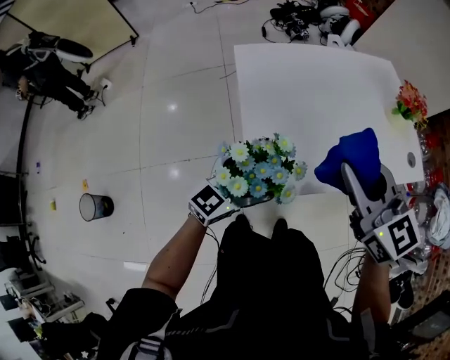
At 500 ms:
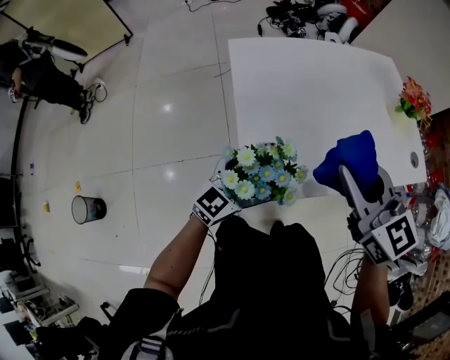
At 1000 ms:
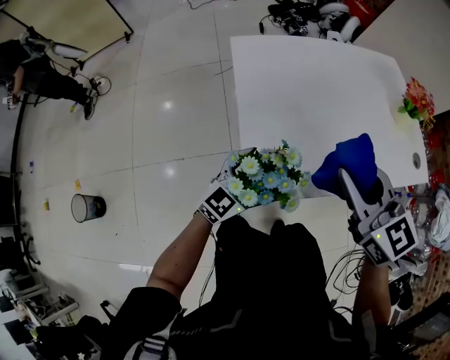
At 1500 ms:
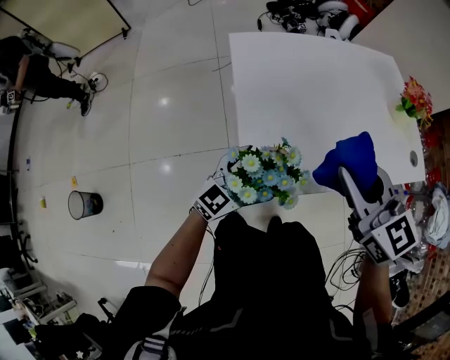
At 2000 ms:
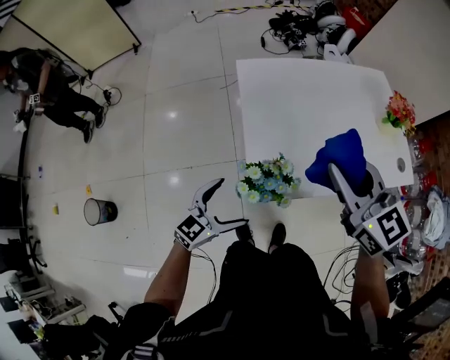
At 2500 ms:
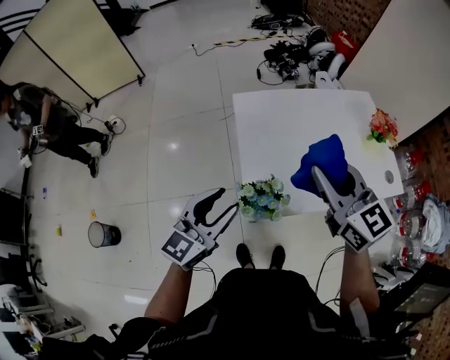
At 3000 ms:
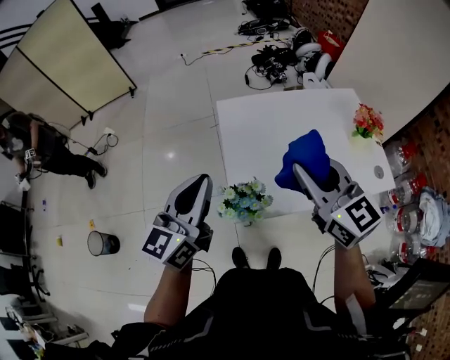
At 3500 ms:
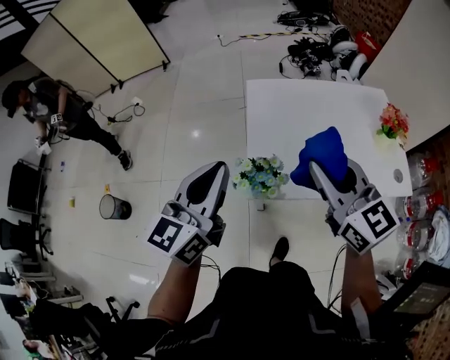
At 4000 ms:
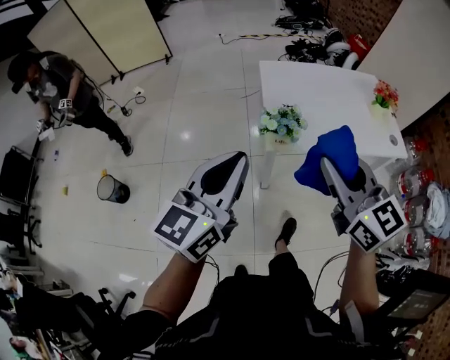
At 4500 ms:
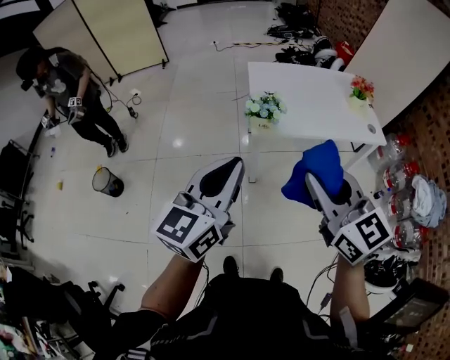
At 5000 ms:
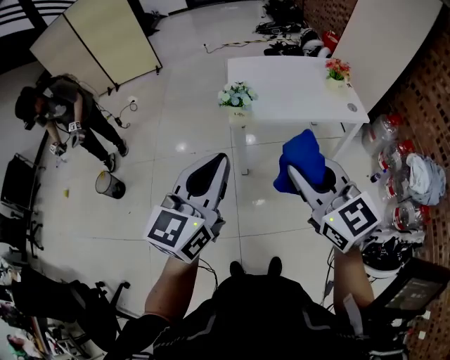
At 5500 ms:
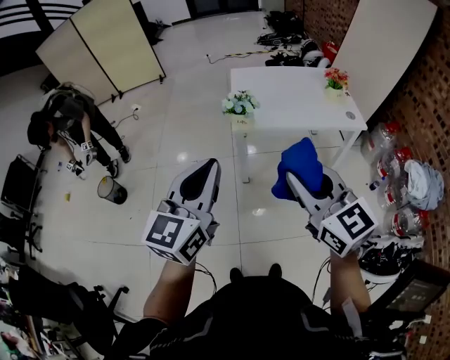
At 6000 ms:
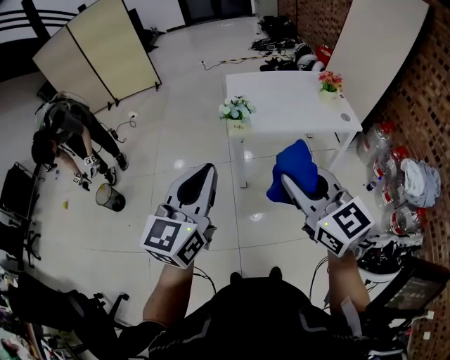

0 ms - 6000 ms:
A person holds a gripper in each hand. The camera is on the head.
0 ms - 2000 ms: The left gripper moves backward and to the left, about 10 cm.
2000 ms - 4000 ms: The right gripper moves backward, some 30 cm. Meanwhile the left gripper moves upward and backward, some 40 cm, swivels about 30 degrees, and closes its fingers.
4000 ms - 6000 ms: The two grippers go about 25 cm backward.

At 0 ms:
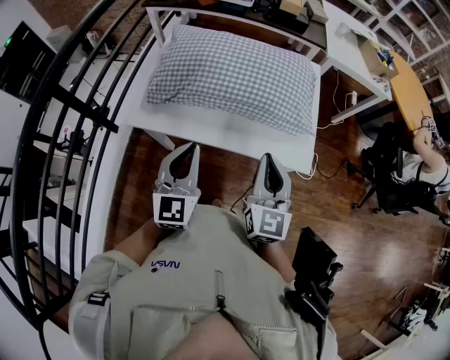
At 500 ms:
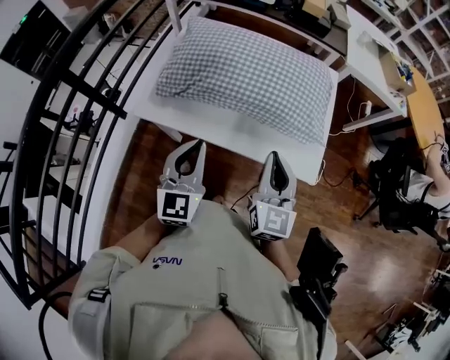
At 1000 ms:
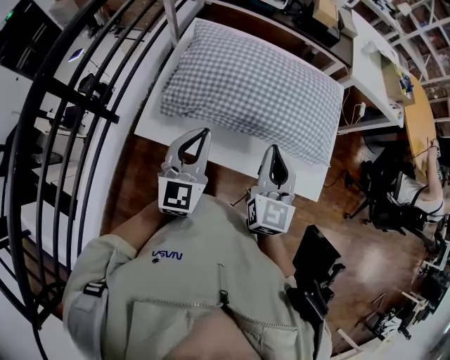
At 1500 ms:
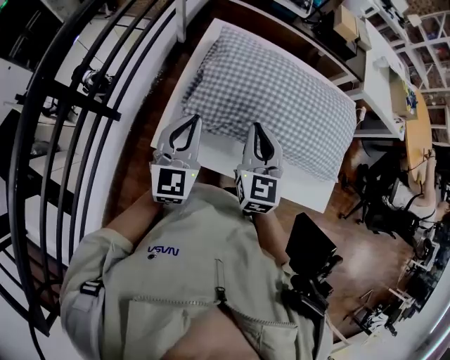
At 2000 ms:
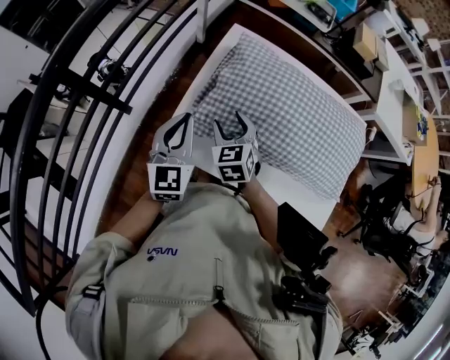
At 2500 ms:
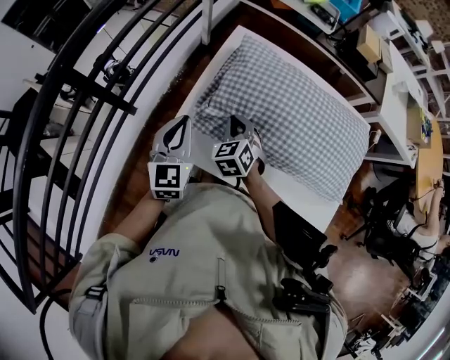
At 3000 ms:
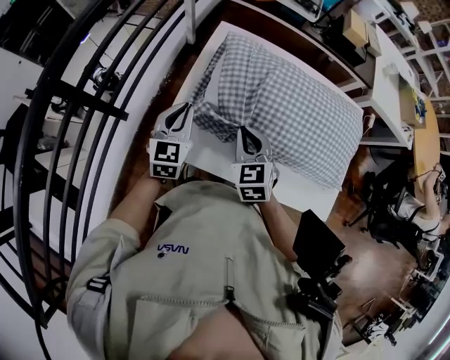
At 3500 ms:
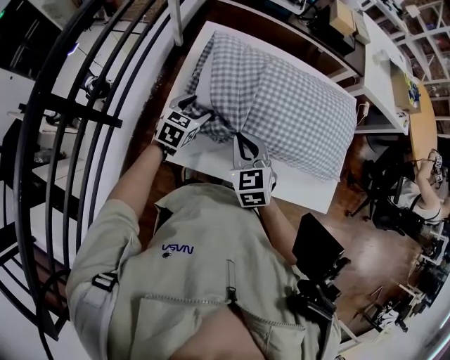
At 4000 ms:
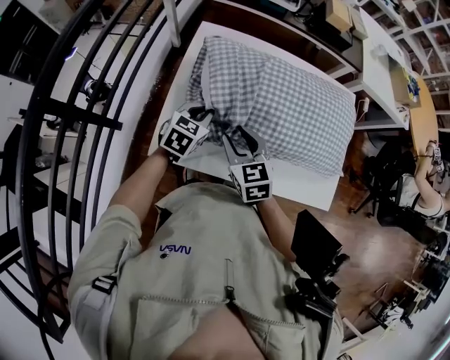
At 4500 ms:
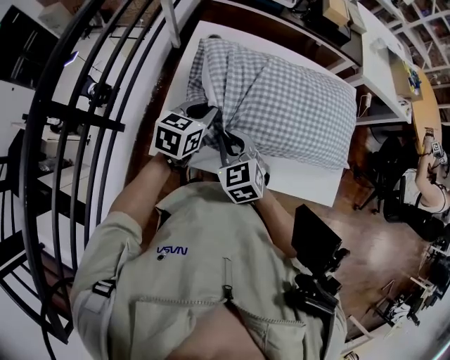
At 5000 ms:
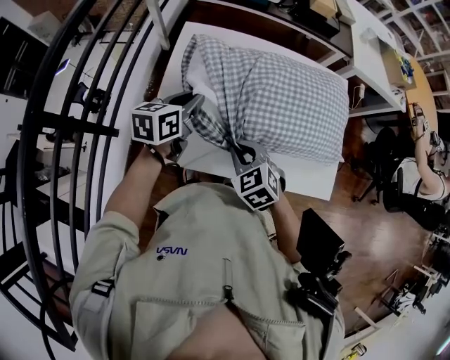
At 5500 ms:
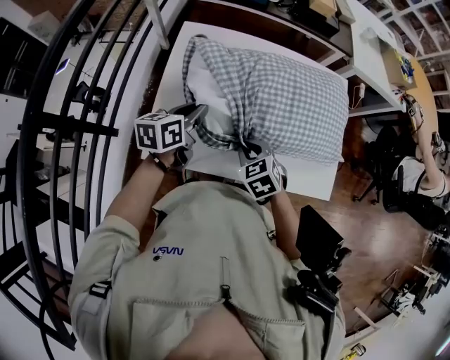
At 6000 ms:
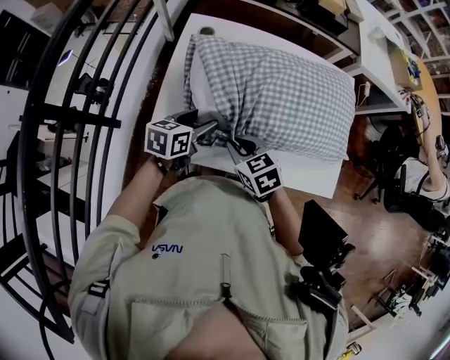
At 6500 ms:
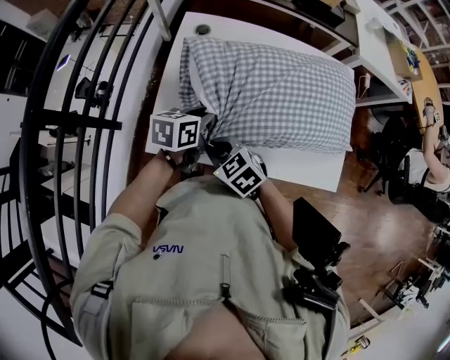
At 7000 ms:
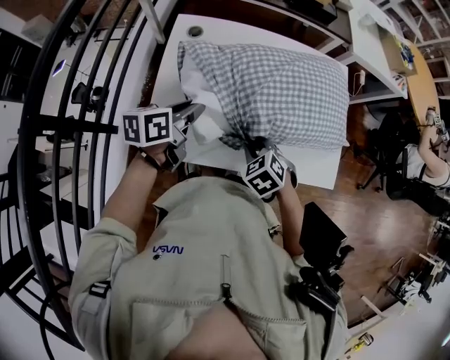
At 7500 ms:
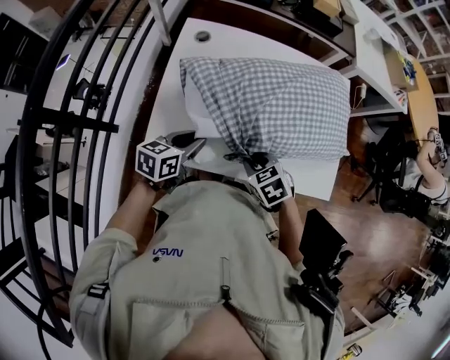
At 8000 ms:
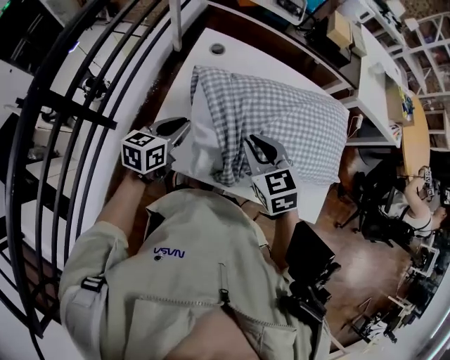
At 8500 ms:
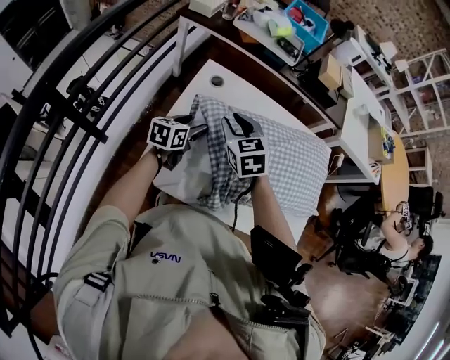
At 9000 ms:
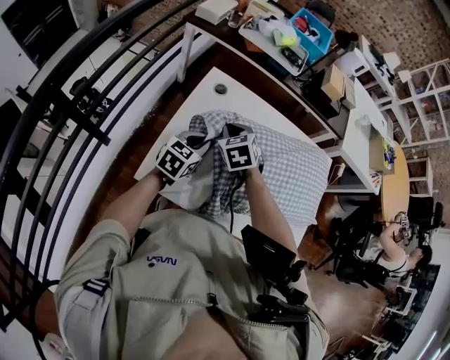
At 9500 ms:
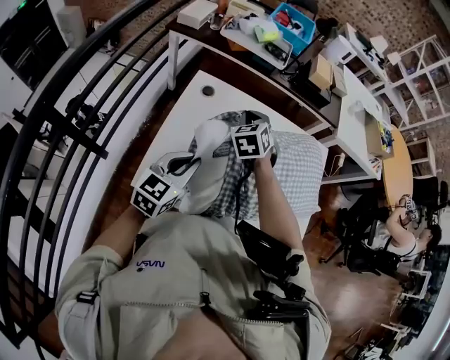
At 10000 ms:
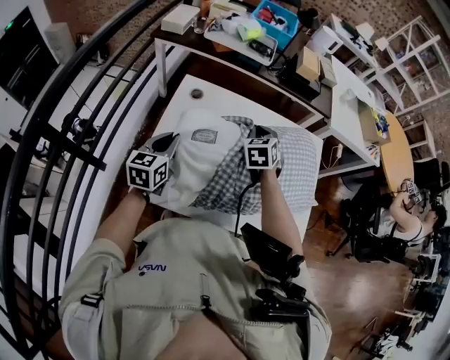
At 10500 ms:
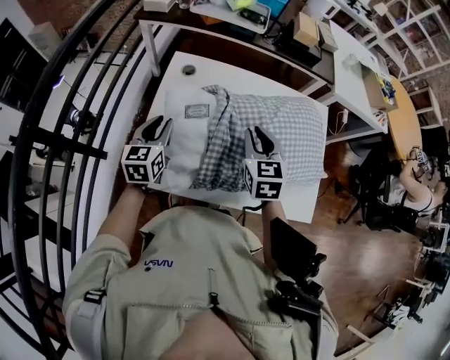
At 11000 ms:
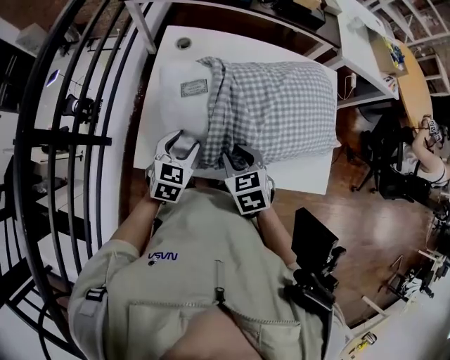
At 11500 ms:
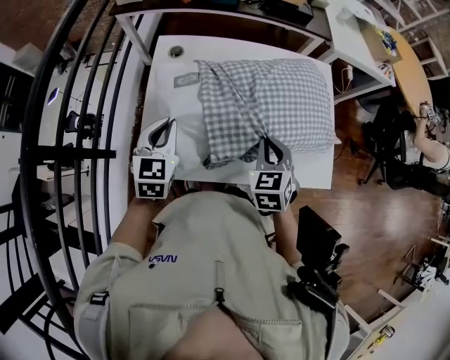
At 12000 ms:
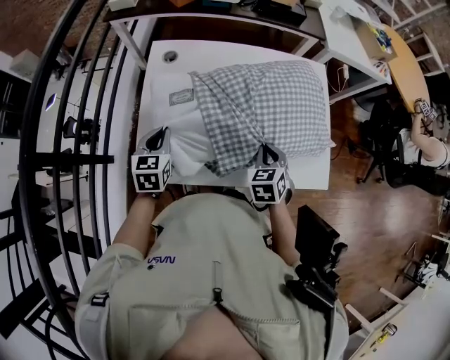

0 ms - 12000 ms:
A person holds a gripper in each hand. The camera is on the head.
0 ms - 2000 ms: The right gripper travels to the left, forward and downward by about 40 cm, tilts its fingers roughly 30 degrees downward, and opens up; the left gripper goes roughly 30 cm forward and to the left.
2000 ms - 4000 ms: The left gripper heads downward, to the right and forward, covering about 15 cm, turns by approximately 40 degrees, and opens and closes again, while the right gripper travels to the right by about 5 cm, and closes its fingers.
4000 ms - 6000 ms: The left gripper goes approximately 5 cm backward, goes upward and returns, roughly 10 cm each way, rotates about 30 degrees, and opens. The right gripper moves approximately 5 cm to the right and comes back, and closes its fingers.
6000 ms - 8000 ms: The right gripper swings left and right, approximately 15 cm each way, with 2 reversals. Meanwhile the left gripper moves to the left, some 5 cm, and closes up.
8000 ms - 10000 ms: The right gripper travels forward by about 20 cm, and swivels roughly 30 degrees, while the left gripper goes forward and backward, roughly 10 cm each way, reversing 2 times, and opens, then closes again.
10000 ms - 12000 ms: The right gripper heads backward and to the right, covering some 20 cm, and opens and closes again, while the left gripper travels downward by some 5 cm, goes to the right and returns, about 10 cm each way, and opens, then closes again.

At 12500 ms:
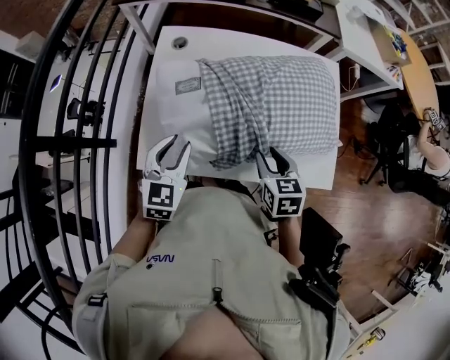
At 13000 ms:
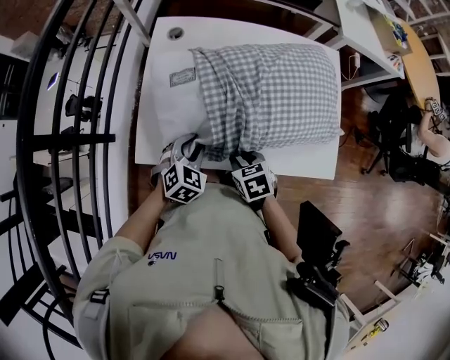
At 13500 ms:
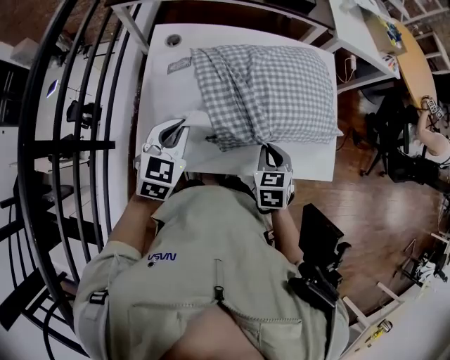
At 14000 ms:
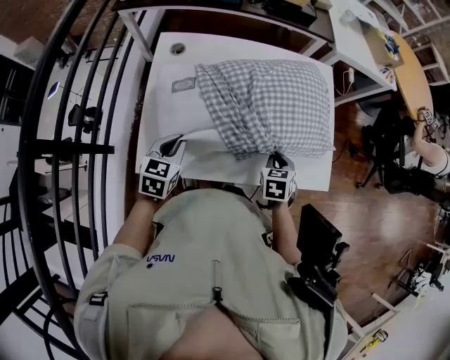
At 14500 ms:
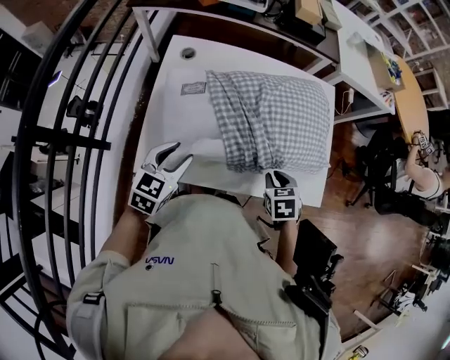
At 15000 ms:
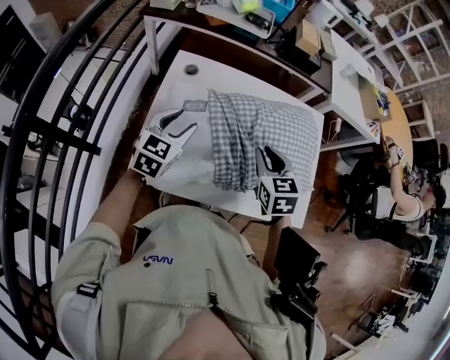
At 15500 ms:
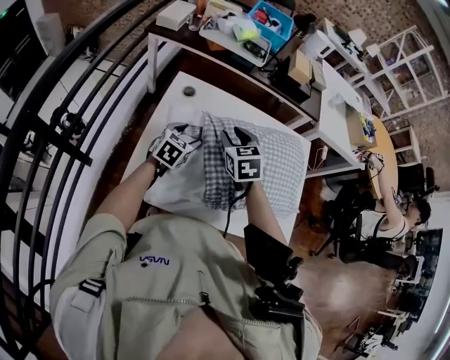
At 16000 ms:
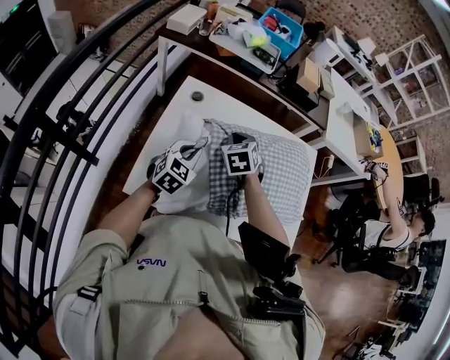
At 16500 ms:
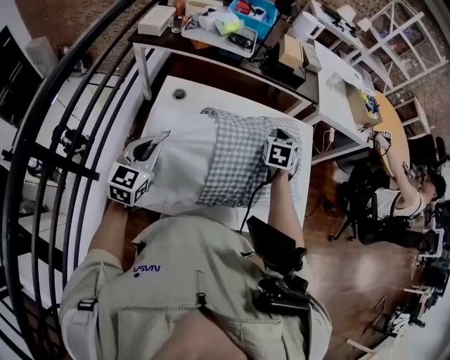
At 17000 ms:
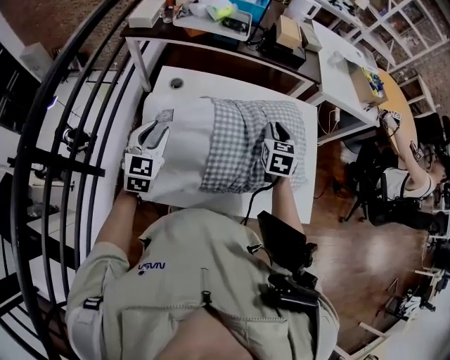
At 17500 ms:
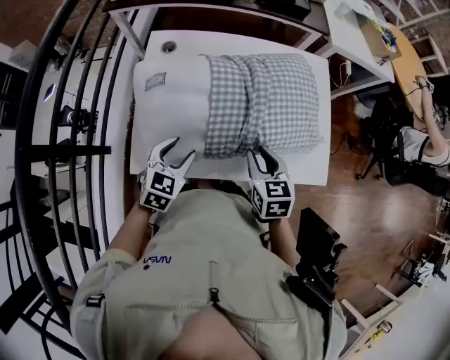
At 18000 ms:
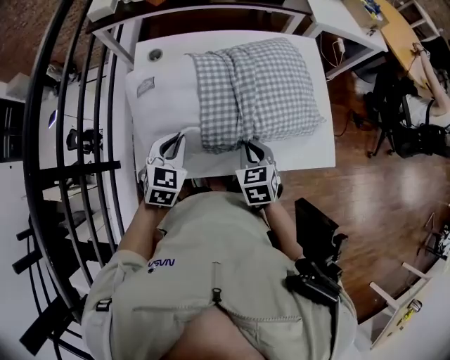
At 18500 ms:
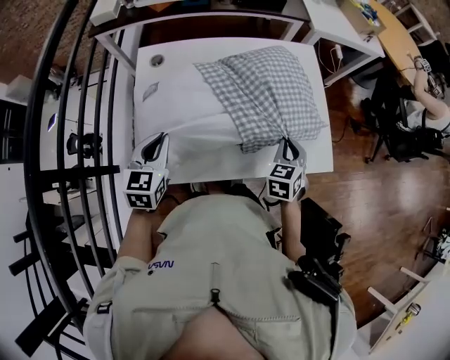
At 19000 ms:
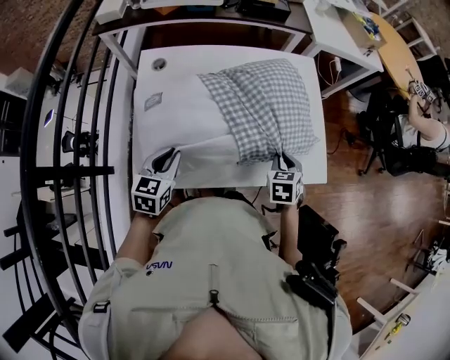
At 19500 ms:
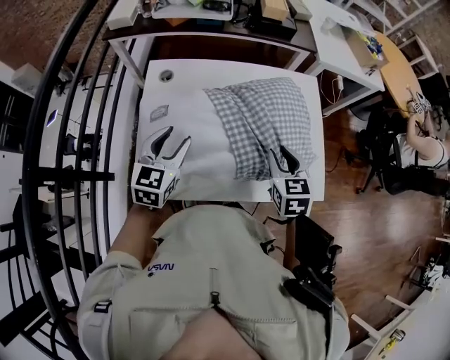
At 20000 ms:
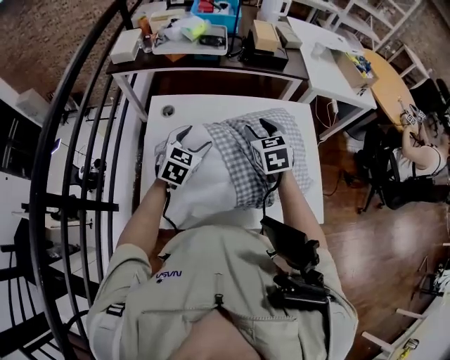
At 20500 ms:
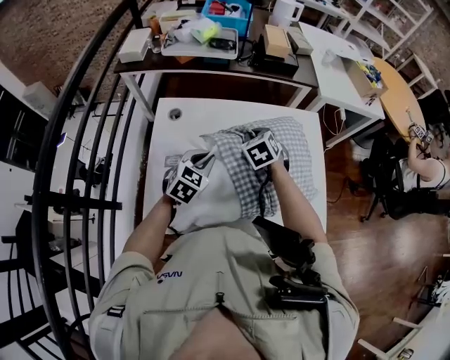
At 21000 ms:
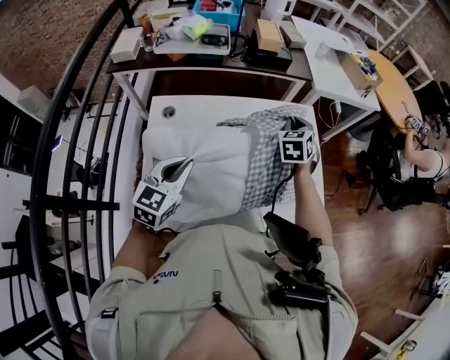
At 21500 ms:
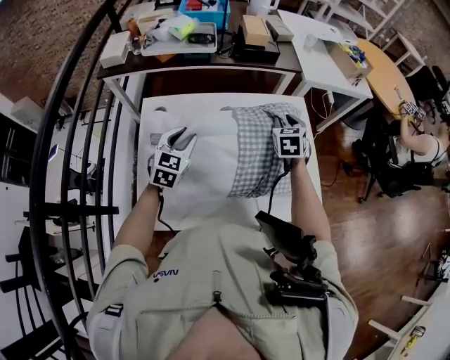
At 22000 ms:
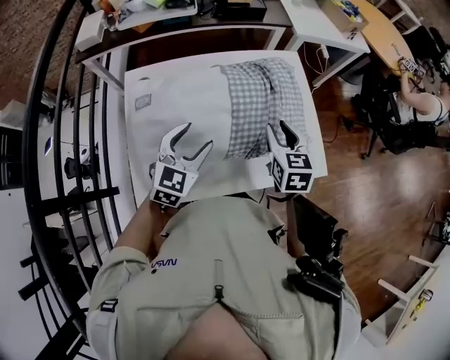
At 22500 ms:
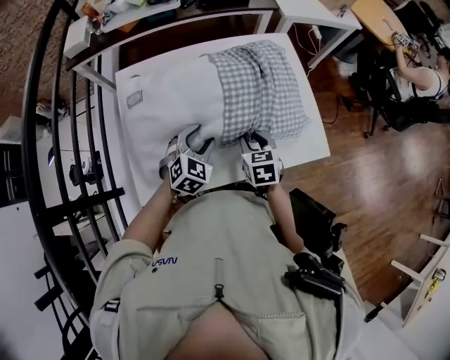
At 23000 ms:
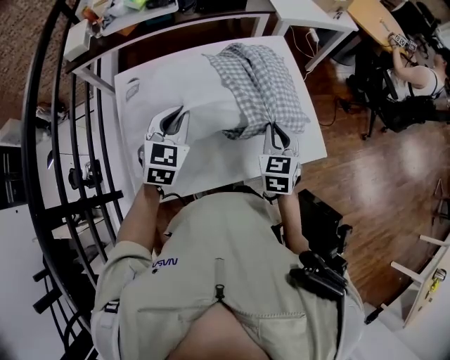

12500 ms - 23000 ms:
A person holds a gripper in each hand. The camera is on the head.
12500 ms - 14500 ms: The left gripper goes up and down, about 10 cm each way, reversing 3 times, and closes and opens again. Meanwhile the right gripper goes up and down, roughly 10 cm each way, reversing 2 times.
14500 ms - 16500 ms: The right gripper heads forward, covering about 25 cm, and rotates roughly 30 degrees. The left gripper is displaced forward, to the left and upward by roughly 15 cm, and closes its fingers.
16500 ms - 19000 ms: The left gripper shifts about 15 cm downward, to the right and backward, turns by about 20 degrees, and opens, then closes again; the right gripper travels backward, downward and to the right by approximately 25 cm.
19000 ms - 21000 ms: The right gripper is displaced forward and upward by approximately 30 cm, changes its angle by approximately 20 degrees, and opens, then closes again; the left gripper travels upward and forward by some 15 cm, and opens and closes again.
21000 ms - 23000 ms: The left gripper moves to the right, some 5 cm, moves about 15 cm downward and comes back, and opens, then closes again; the right gripper moves backward, some 20 cm, and opens and closes again.
